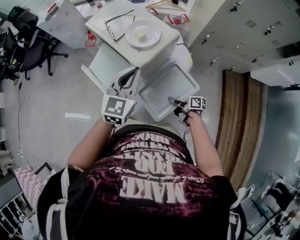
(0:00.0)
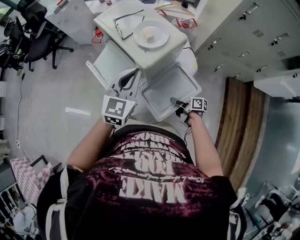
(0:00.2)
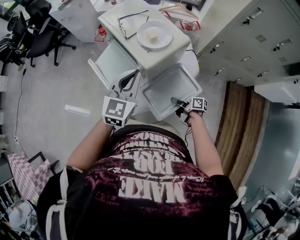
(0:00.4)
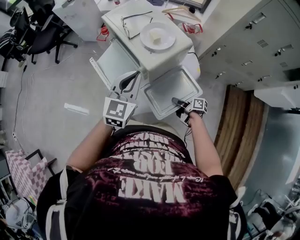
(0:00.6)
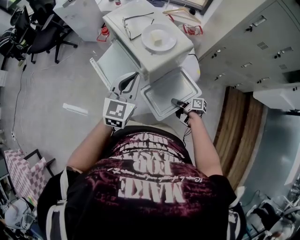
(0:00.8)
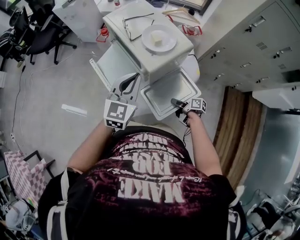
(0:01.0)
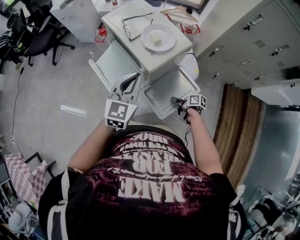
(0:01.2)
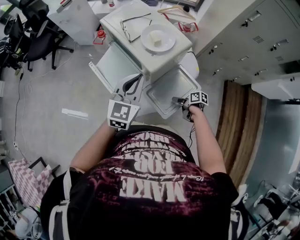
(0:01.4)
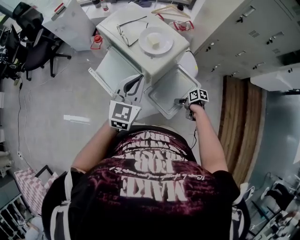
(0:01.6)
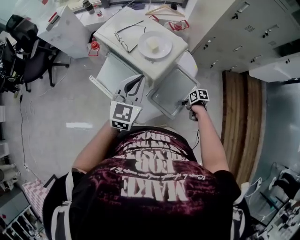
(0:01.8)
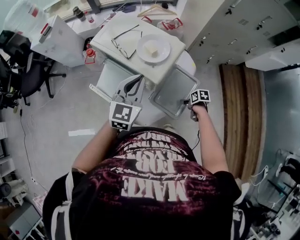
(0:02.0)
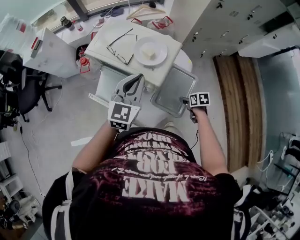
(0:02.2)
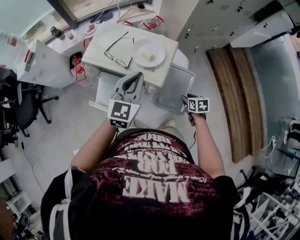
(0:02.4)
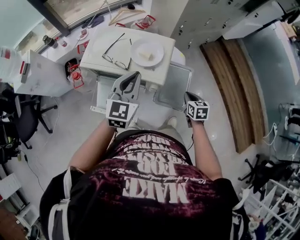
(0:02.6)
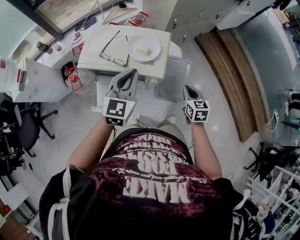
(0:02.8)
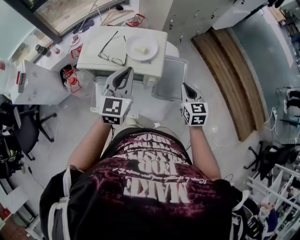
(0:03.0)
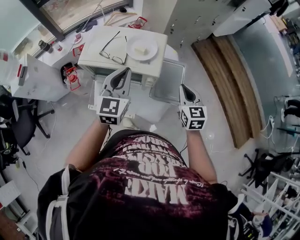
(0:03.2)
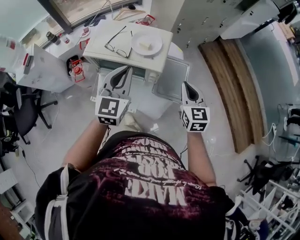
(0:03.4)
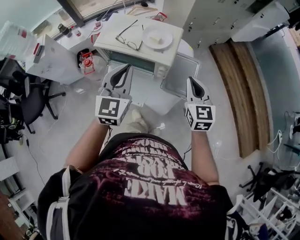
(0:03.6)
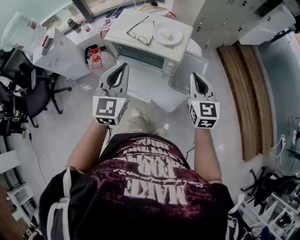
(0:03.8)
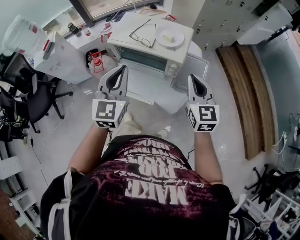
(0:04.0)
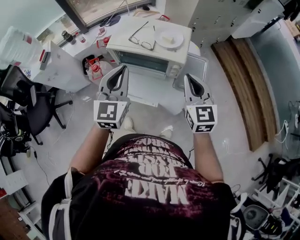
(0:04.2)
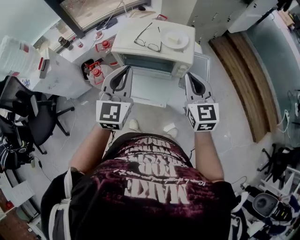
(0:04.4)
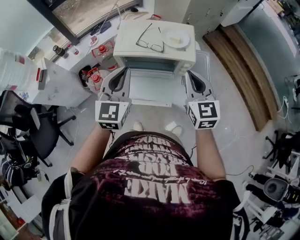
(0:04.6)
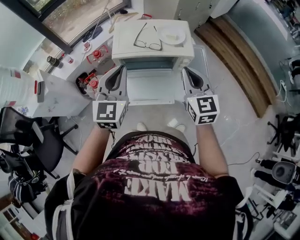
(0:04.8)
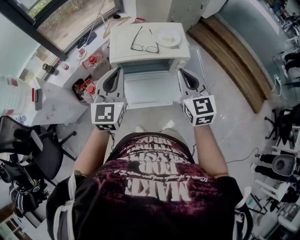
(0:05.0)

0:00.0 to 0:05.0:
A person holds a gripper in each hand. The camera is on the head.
0:00.0 to 0:01.6: The right gripper changes place by approximately 5 cm, changes its angle by approximately 30 degrees, and opens up.
0:01.6 to 0:03.4: The right gripper is displaced upward by some 35 cm, turns by about 80 degrees, and closes its fingers; the left gripper moves roughly 15 cm, and changes its angle by roughly 30 degrees.
0:03.4 to 0:05.0: The two grippers go about 25 cm to the left.

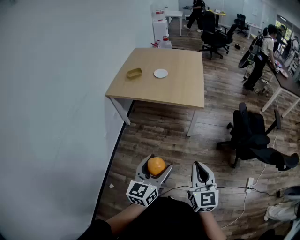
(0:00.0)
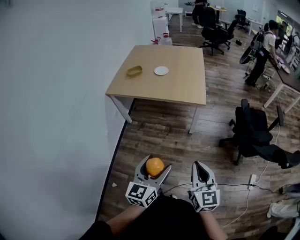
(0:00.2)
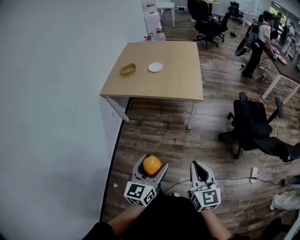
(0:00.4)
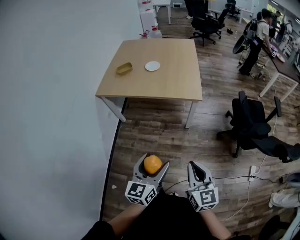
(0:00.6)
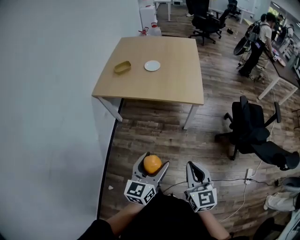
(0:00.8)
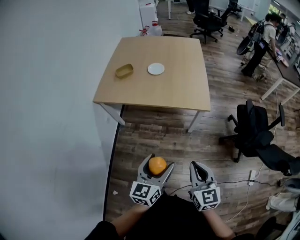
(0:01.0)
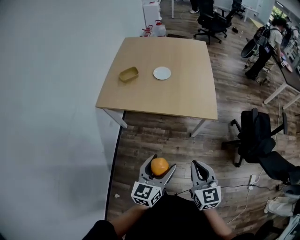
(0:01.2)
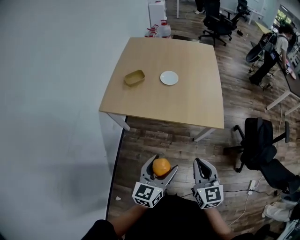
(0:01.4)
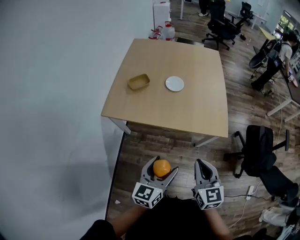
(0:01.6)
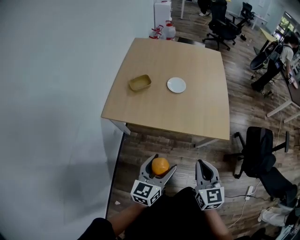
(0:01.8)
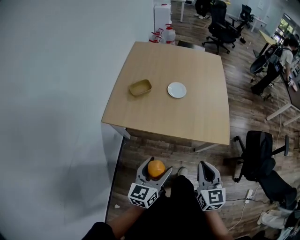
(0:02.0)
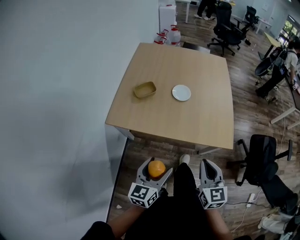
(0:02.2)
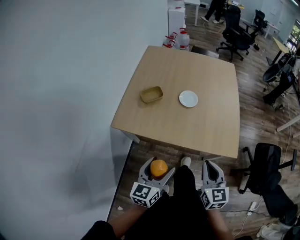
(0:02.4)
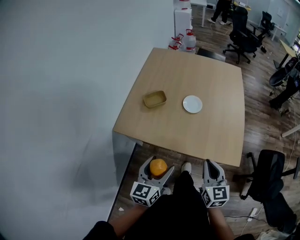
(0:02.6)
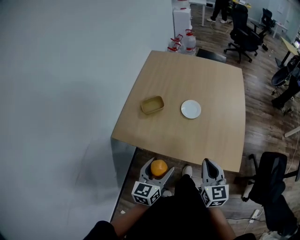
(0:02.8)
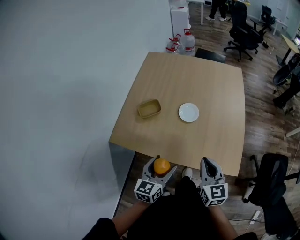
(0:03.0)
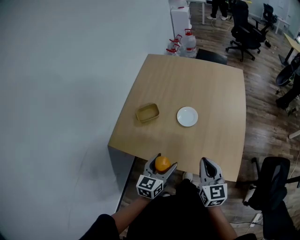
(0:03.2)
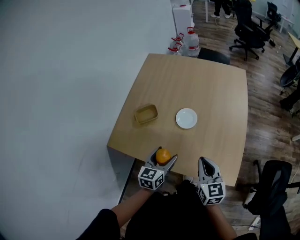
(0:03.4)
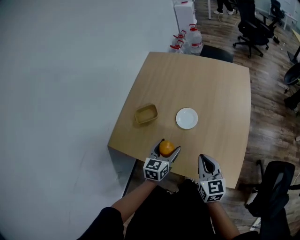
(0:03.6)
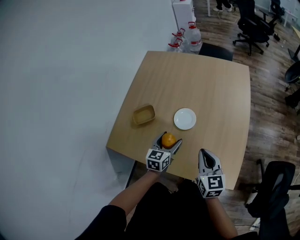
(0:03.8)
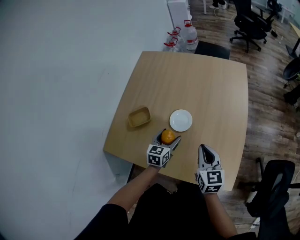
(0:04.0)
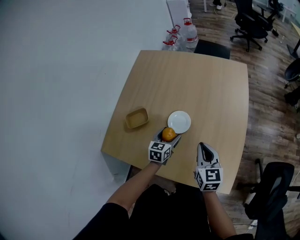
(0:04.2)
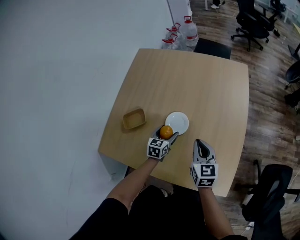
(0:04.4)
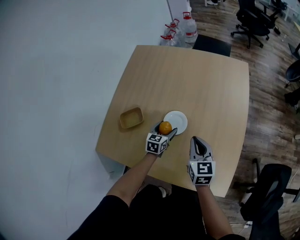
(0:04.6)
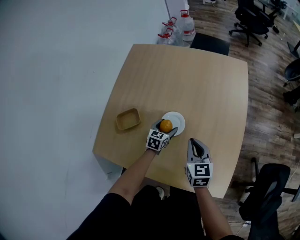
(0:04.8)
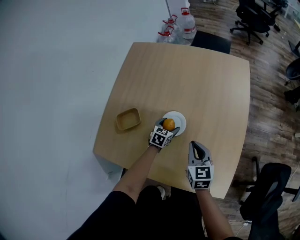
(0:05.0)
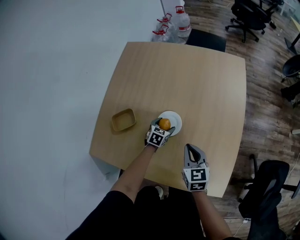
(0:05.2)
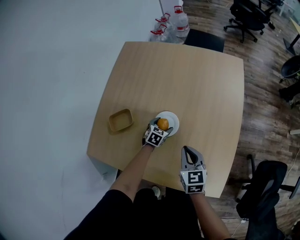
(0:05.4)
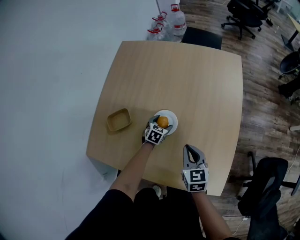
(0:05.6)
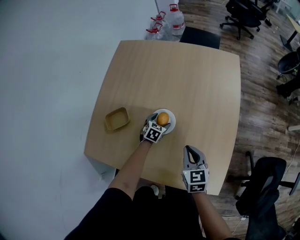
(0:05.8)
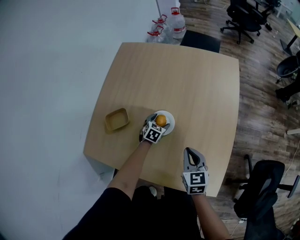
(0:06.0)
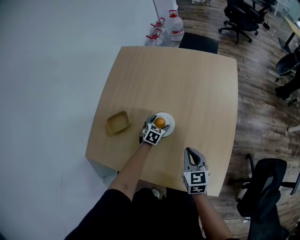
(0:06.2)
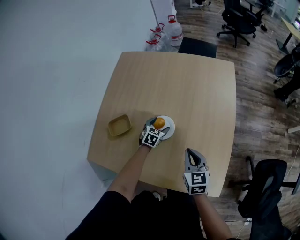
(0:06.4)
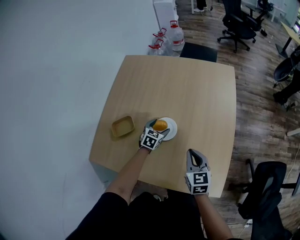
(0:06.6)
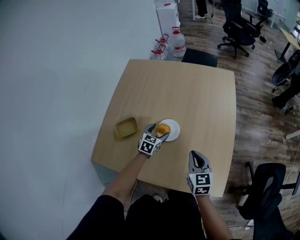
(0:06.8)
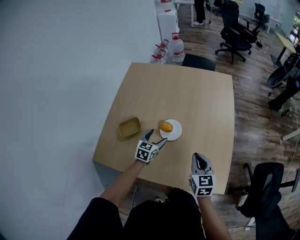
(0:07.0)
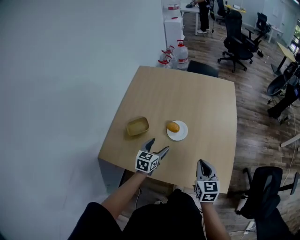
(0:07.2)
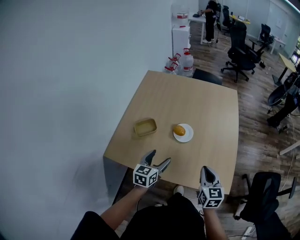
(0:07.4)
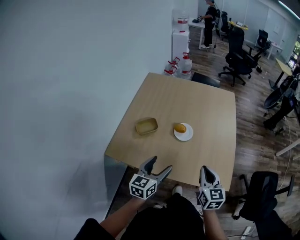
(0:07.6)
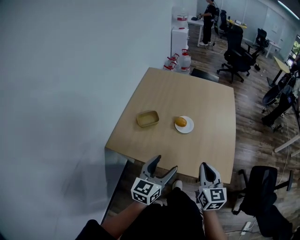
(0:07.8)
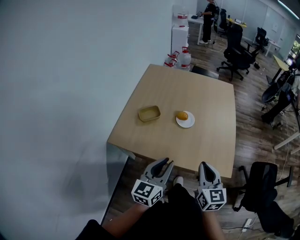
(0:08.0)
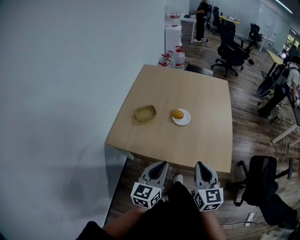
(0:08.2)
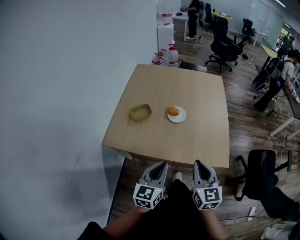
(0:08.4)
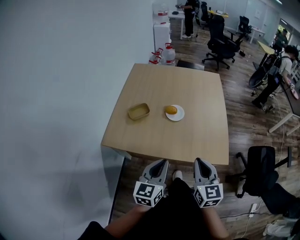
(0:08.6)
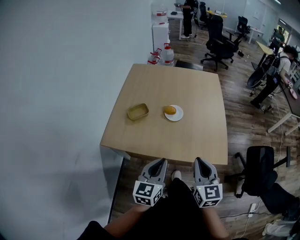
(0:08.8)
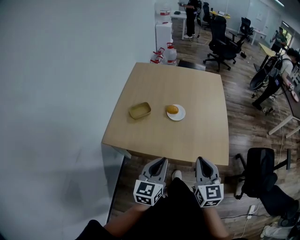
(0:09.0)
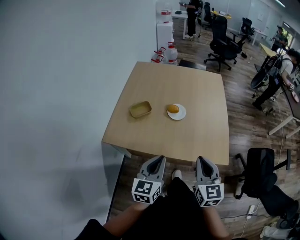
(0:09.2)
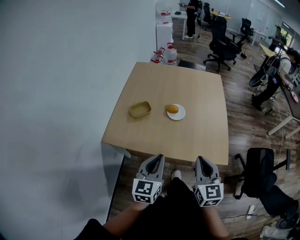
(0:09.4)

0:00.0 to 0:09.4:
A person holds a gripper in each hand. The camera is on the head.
0:00.0 to 0:01.6: The grippers both shift forward and to the left by about 40 cm.
0:01.6 to 0:03.2: The two grippers go approximately 25 cm forward.
0:03.2 to 0:04.8: The right gripper goes about 25 cm forward and downward; the left gripper goes roughly 35 cm forward and downward, and rotates roughly 20 degrees.
0:04.8 to 0:06.2: The right gripper moves roughly 5 cm.
0:06.2 to 0:07.8: The right gripper moves backward and upward, about 30 cm, while the left gripper heads backward and upward, covering roughly 50 cm, and tips its fingers upward by roughly 40 degrees.
0:07.8 to 0:09.4: The two grippers go about 5 cm backward. The left gripper closes its fingers.

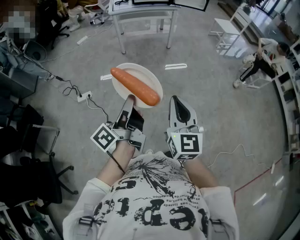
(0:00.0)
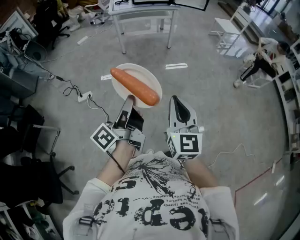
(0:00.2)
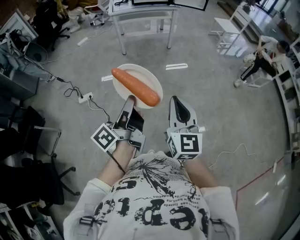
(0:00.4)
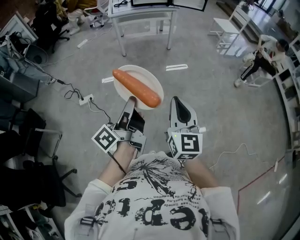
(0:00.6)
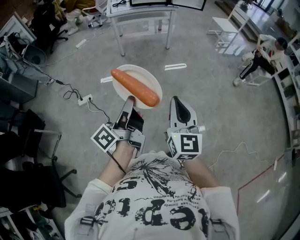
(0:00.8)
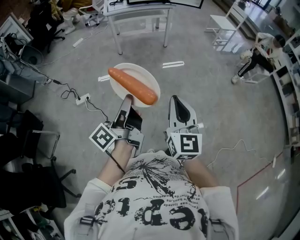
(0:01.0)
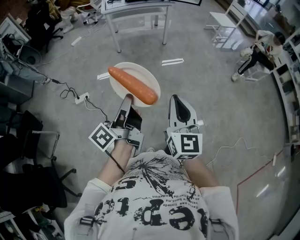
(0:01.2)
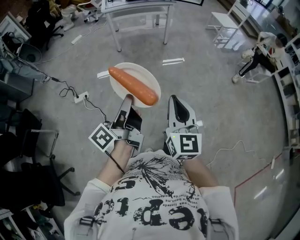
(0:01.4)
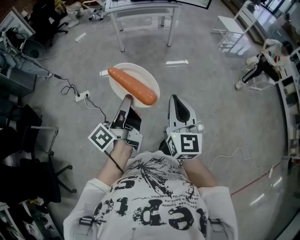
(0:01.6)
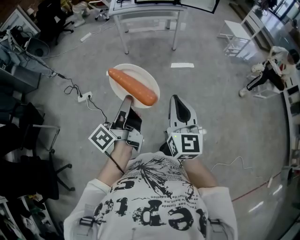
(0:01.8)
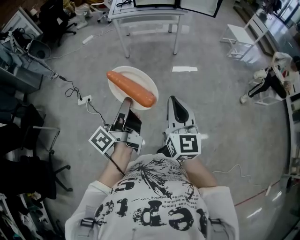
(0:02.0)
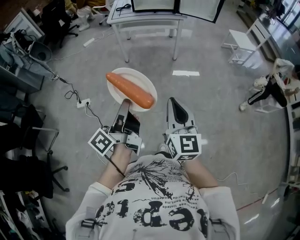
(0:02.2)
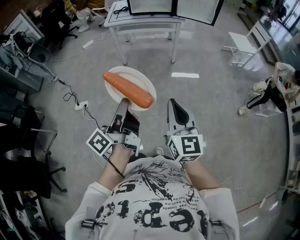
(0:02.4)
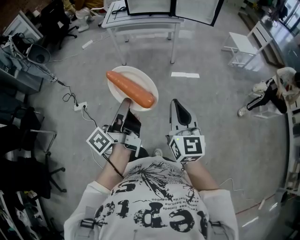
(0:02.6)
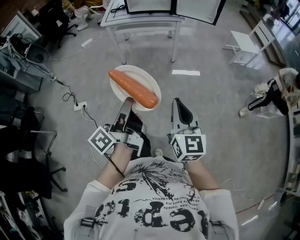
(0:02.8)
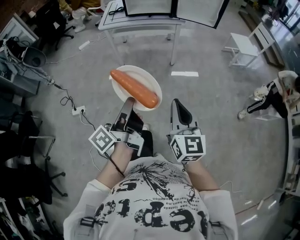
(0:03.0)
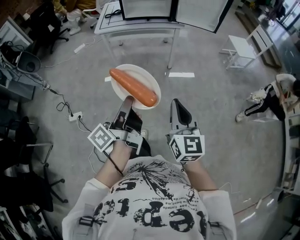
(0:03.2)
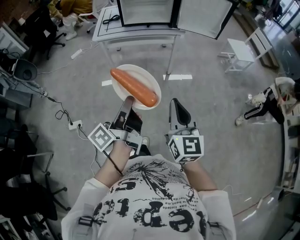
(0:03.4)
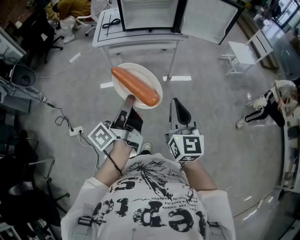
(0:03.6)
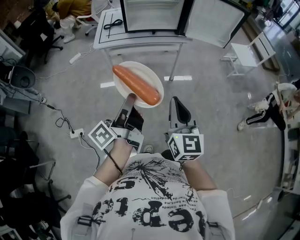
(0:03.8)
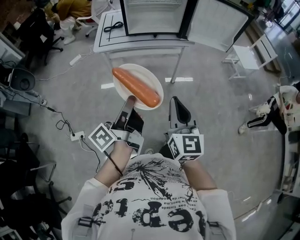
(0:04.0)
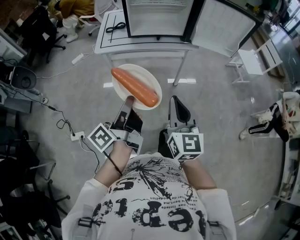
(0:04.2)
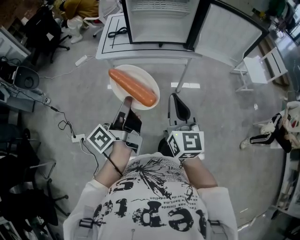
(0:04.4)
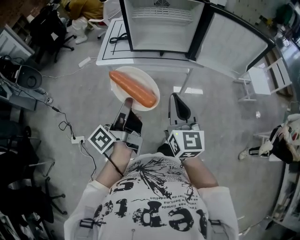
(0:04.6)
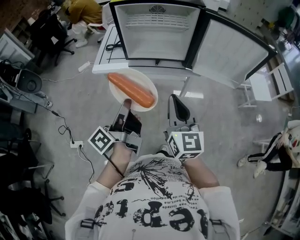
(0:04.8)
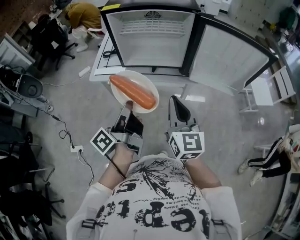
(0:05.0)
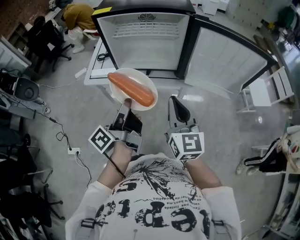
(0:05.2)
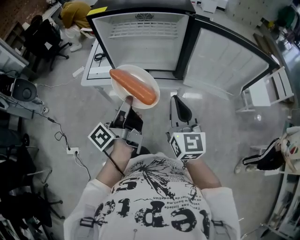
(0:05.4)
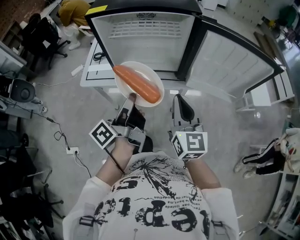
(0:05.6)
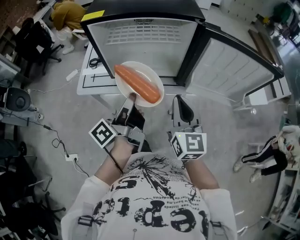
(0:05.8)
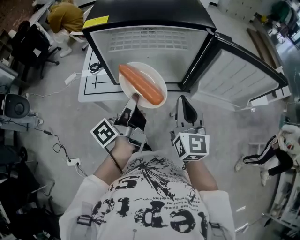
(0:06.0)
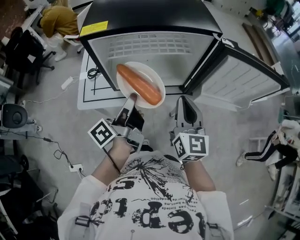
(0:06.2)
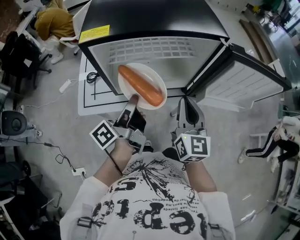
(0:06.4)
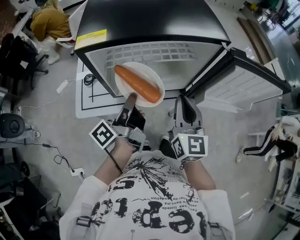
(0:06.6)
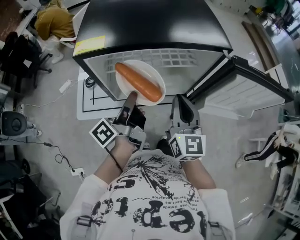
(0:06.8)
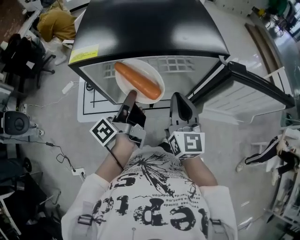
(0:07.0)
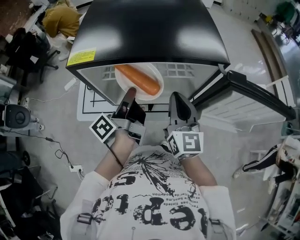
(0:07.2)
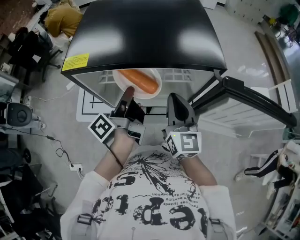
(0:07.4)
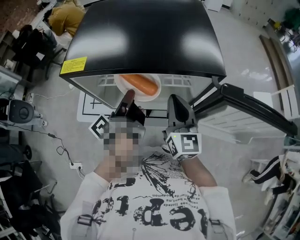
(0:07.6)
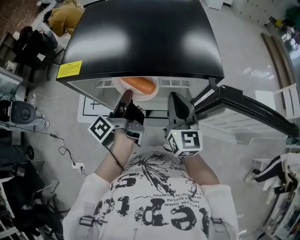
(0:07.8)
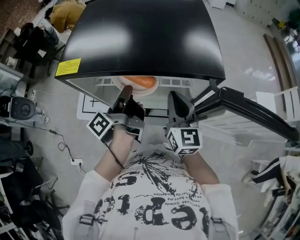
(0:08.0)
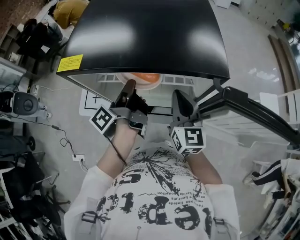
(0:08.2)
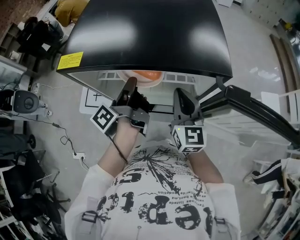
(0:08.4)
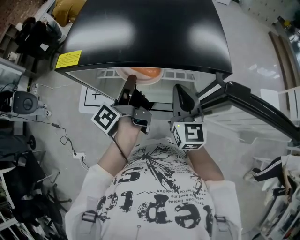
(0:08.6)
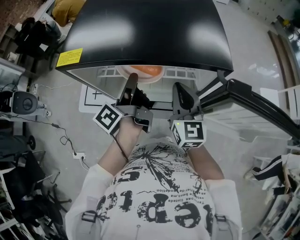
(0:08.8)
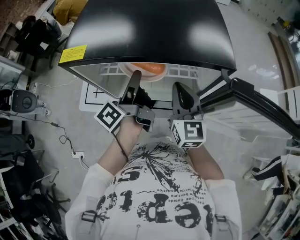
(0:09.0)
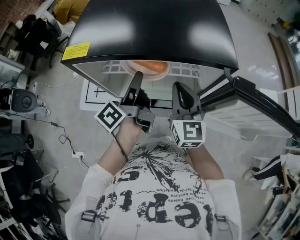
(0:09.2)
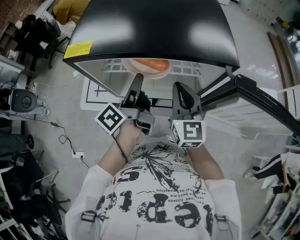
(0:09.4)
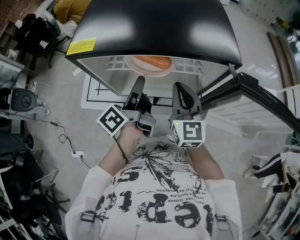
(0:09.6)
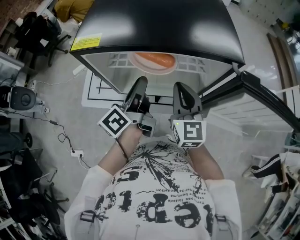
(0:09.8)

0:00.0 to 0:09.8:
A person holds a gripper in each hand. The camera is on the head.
0:00.0 to 0:01.4: The grippers make only small movements.
0:01.4 to 0:02.8: Both grippers travel together forward and to the right, roughly 35 cm.
0:02.8 to 0:04.2: Both grippers travel together forward, some 35 cm.
0:04.2 to 0:05.6: Both grippers move forward and to the right, approximately 35 cm.
0:05.6 to 0:07.0: The left gripper travels forward by about 20 cm. The right gripper heads forward and to the left, covering some 20 cm.
0:07.0 to 0:08.4: The two grippers go roughly 5 cm forward.
0:08.4 to 0:09.8: The right gripper shifts by roughly 5 cm. The left gripper turns by some 20 degrees, and opens its fingers.
